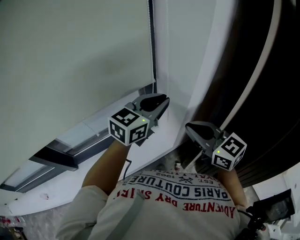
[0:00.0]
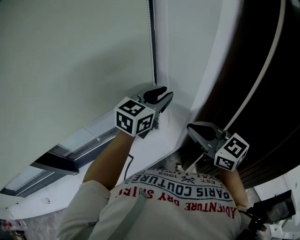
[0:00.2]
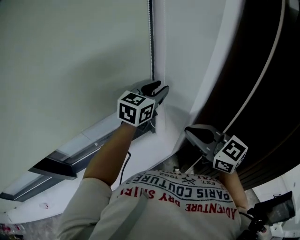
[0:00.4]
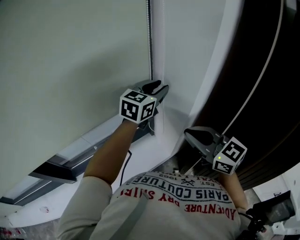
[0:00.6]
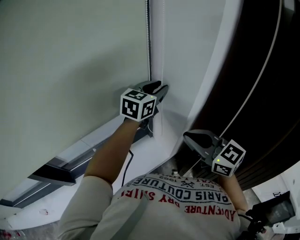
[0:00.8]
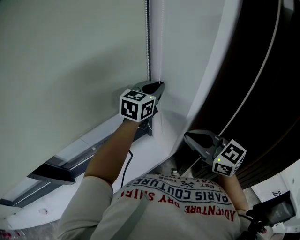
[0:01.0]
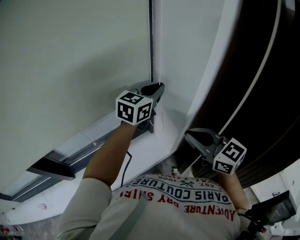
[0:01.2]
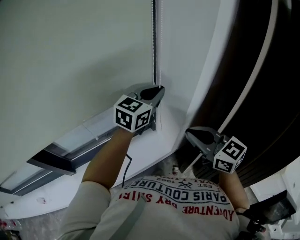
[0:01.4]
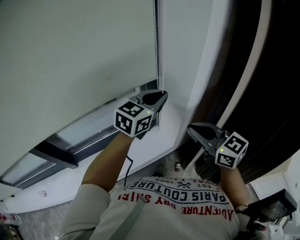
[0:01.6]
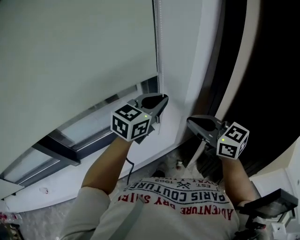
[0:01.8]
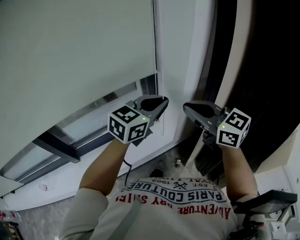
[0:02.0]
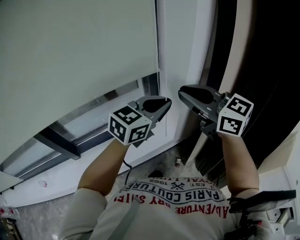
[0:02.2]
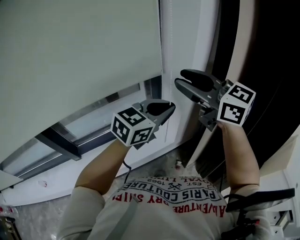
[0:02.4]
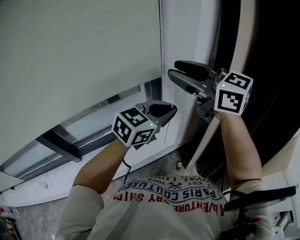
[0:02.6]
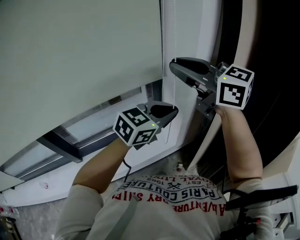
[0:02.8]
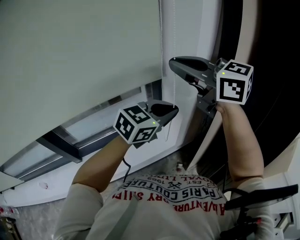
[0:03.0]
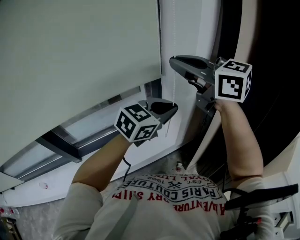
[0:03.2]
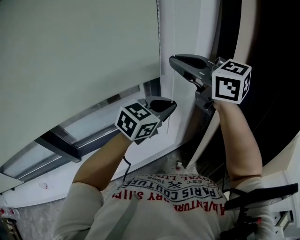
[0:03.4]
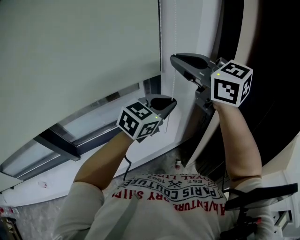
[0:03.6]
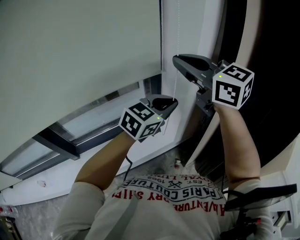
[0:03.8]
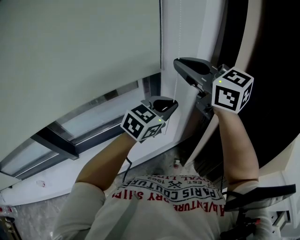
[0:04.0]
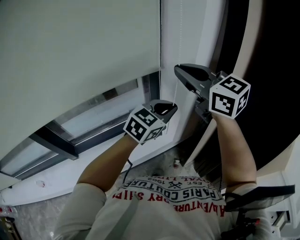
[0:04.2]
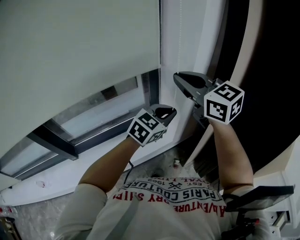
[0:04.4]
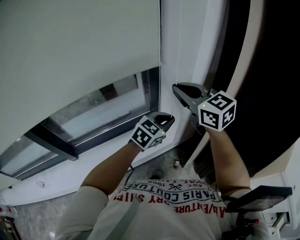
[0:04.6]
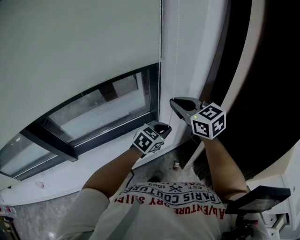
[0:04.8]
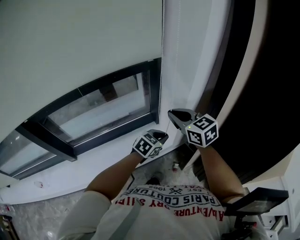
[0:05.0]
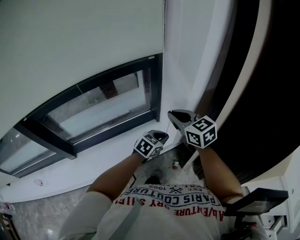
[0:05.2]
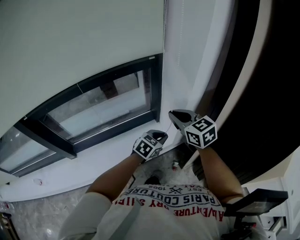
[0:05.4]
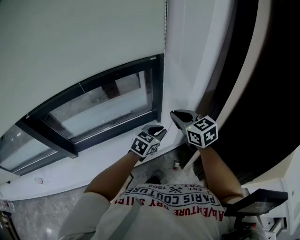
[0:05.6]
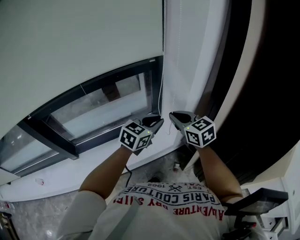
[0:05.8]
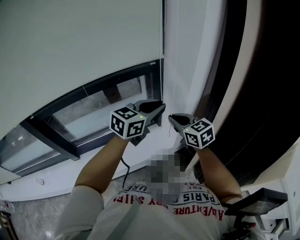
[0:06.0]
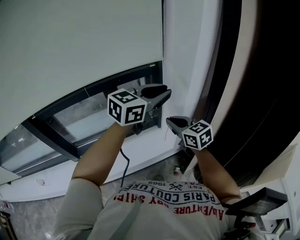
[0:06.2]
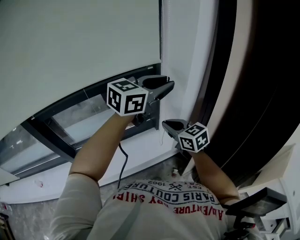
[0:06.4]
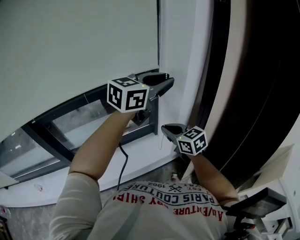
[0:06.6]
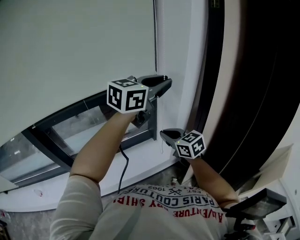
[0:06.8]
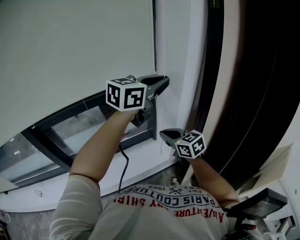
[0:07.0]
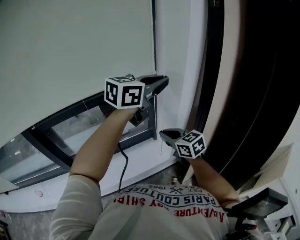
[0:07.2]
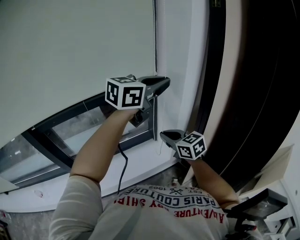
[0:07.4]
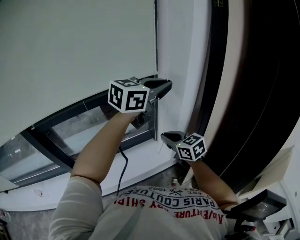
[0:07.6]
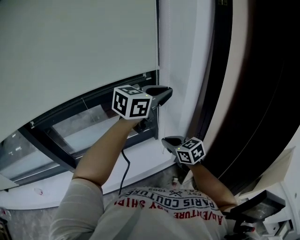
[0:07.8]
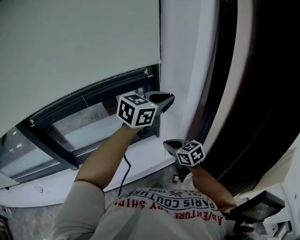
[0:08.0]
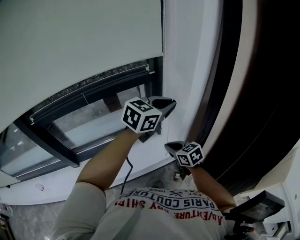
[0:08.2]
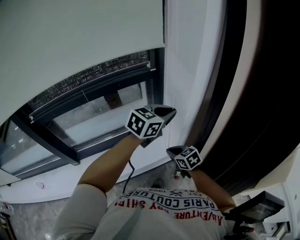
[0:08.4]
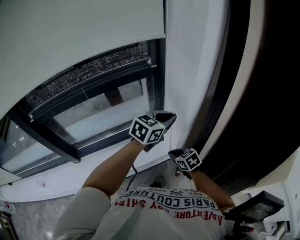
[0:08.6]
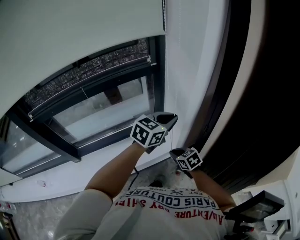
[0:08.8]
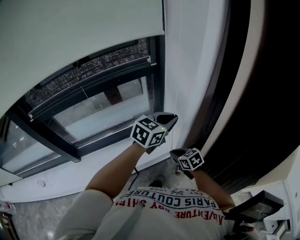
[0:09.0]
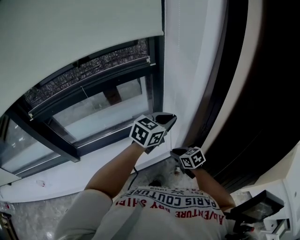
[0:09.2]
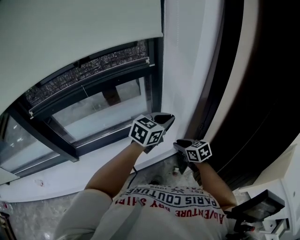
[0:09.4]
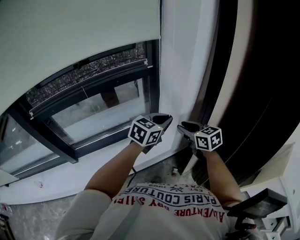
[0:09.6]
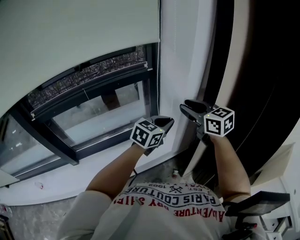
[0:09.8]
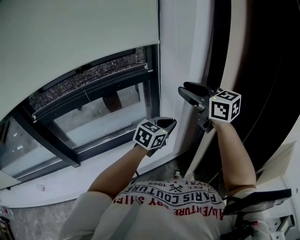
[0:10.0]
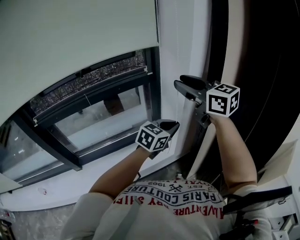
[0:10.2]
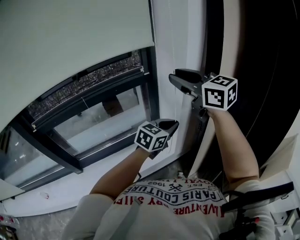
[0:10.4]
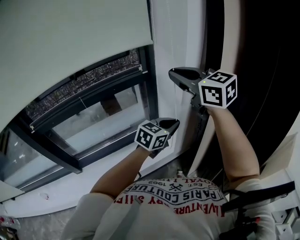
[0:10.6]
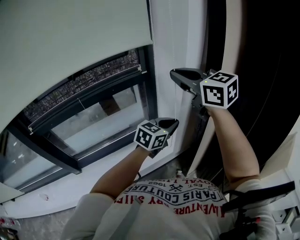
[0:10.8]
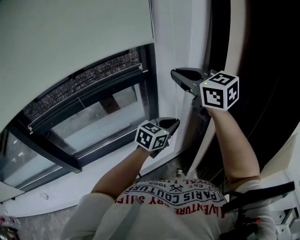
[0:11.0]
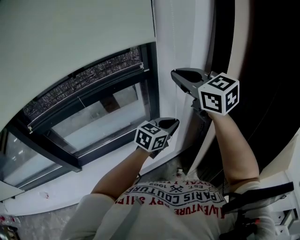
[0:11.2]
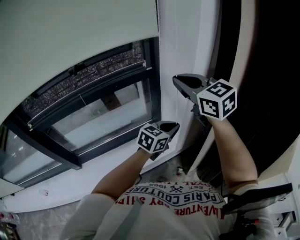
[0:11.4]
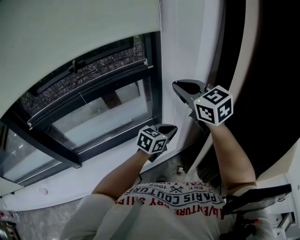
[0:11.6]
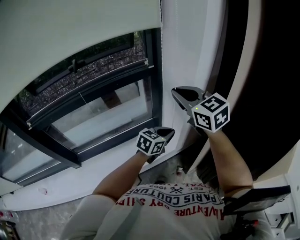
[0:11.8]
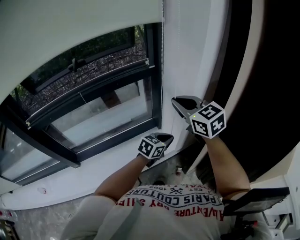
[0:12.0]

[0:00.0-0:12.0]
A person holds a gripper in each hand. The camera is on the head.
0:00.0 to 0:01.6: The left gripper travels forward and back again, roughly 15 cm each way, and opens, then closes again.
0:01.6 to 0:03.0: The right gripper shifts some 20 cm upward, and opens and closes again. The left gripper moves backward, roughly 10 cm.
0:03.0 to 0:04.4: The two grippers go roughly 10 cm downward.
0:04.4 to 0:06.0: The right gripper travels downward by roughly 20 cm. The left gripper goes some 5 cm to the left, and travels downward and back again, about 20 cm each way.
0:06.0 to 0:07.6: The left gripper shifts approximately 15 cm upward.
0:07.6 to 0:09.0: Both grippers travel together downward, approximately 20 cm. The right gripper rotates approximately 20 degrees.
0:09.0 to 0:10.4: The right gripper moves upward, roughly 50 cm, points its fingers roughly 40 degrees further upward, and opens its fingers.
0:10.4 to 0:12.0: Both grippers travel together downward, about 15 cm. The right gripper closes.

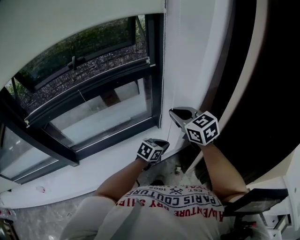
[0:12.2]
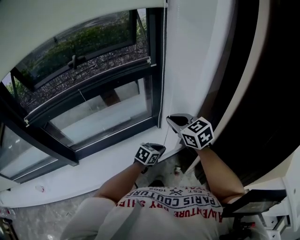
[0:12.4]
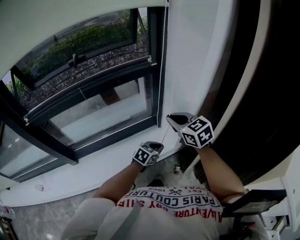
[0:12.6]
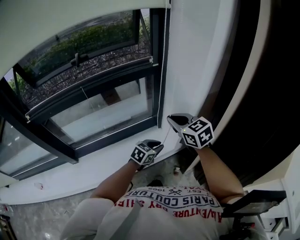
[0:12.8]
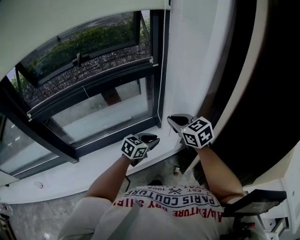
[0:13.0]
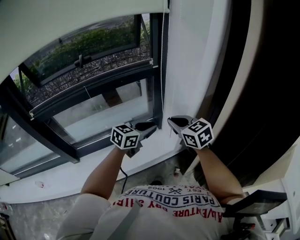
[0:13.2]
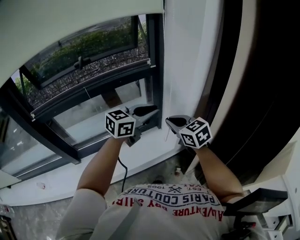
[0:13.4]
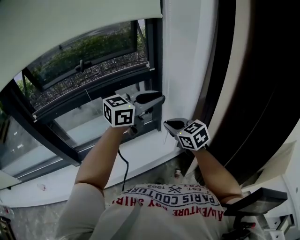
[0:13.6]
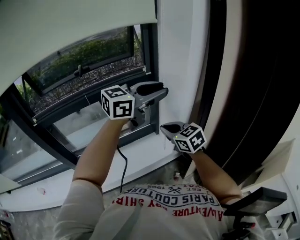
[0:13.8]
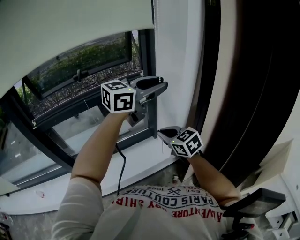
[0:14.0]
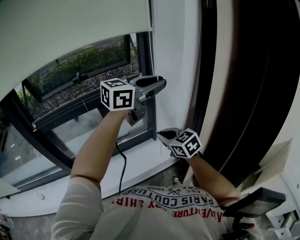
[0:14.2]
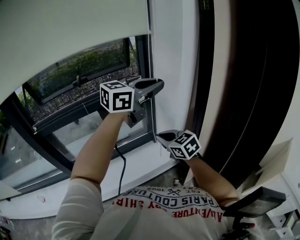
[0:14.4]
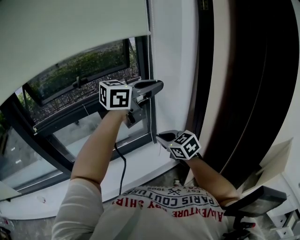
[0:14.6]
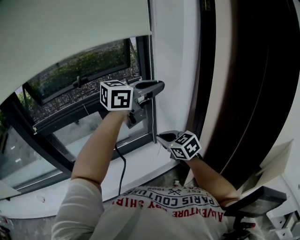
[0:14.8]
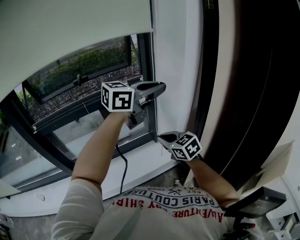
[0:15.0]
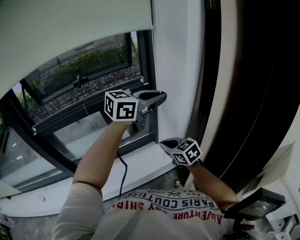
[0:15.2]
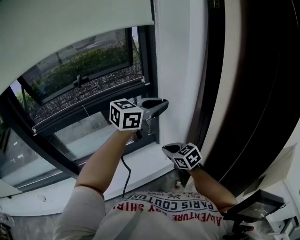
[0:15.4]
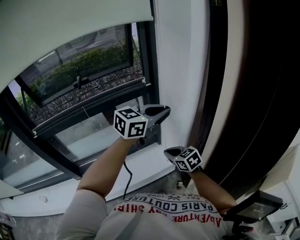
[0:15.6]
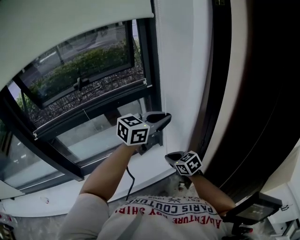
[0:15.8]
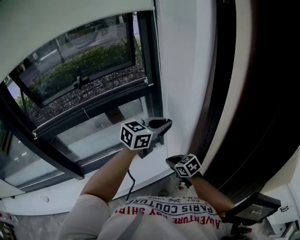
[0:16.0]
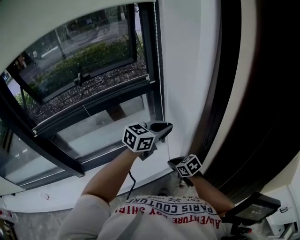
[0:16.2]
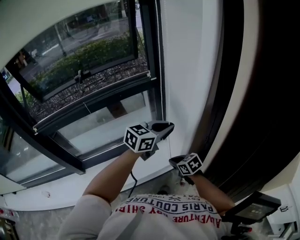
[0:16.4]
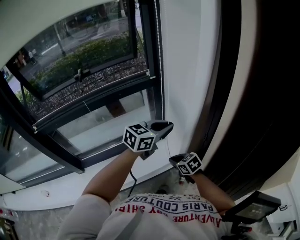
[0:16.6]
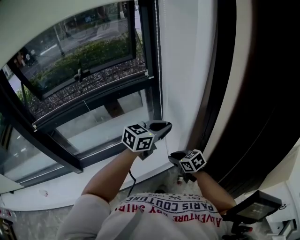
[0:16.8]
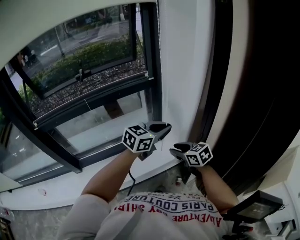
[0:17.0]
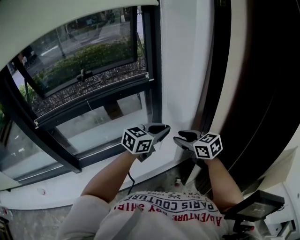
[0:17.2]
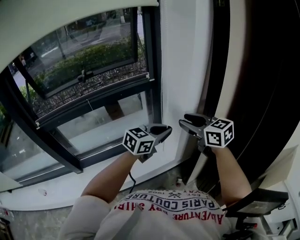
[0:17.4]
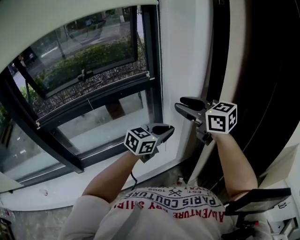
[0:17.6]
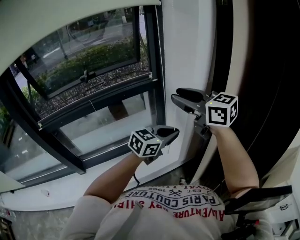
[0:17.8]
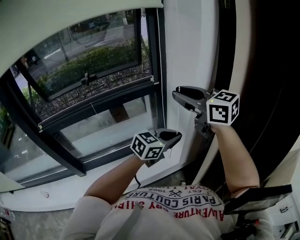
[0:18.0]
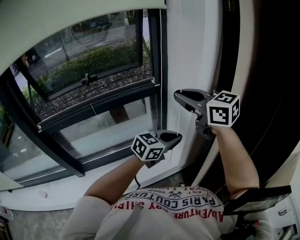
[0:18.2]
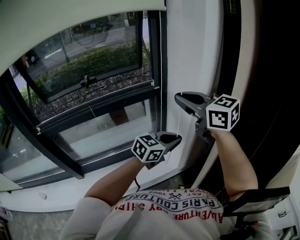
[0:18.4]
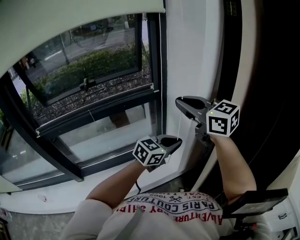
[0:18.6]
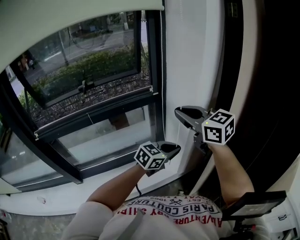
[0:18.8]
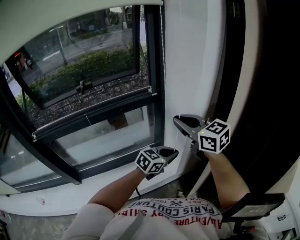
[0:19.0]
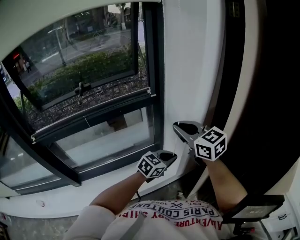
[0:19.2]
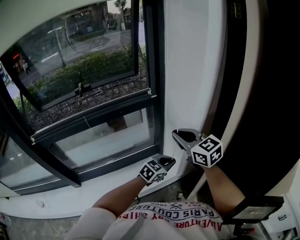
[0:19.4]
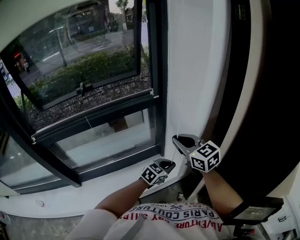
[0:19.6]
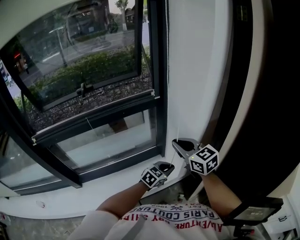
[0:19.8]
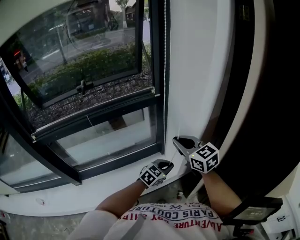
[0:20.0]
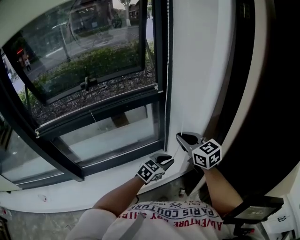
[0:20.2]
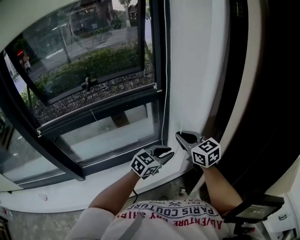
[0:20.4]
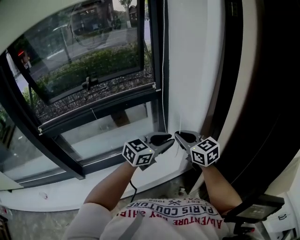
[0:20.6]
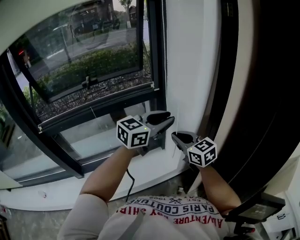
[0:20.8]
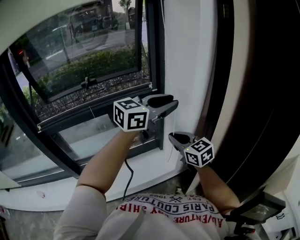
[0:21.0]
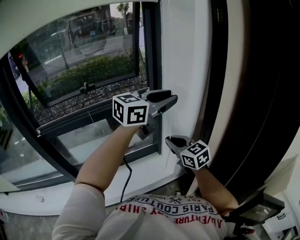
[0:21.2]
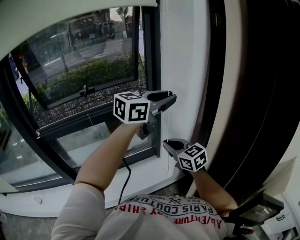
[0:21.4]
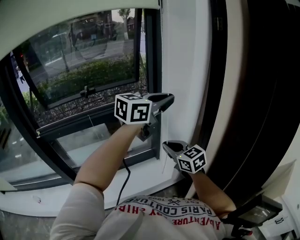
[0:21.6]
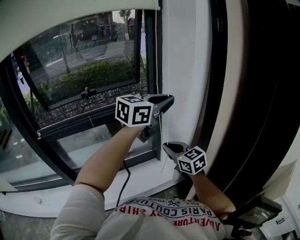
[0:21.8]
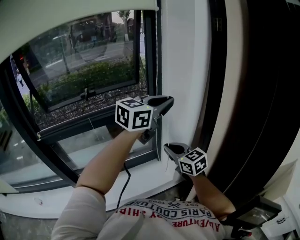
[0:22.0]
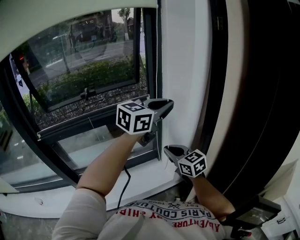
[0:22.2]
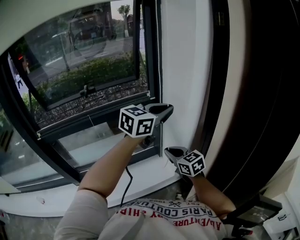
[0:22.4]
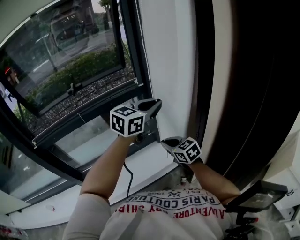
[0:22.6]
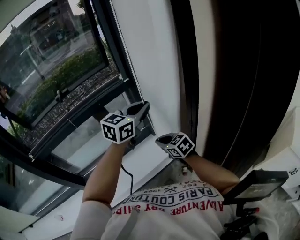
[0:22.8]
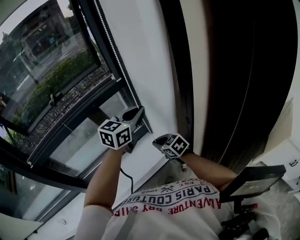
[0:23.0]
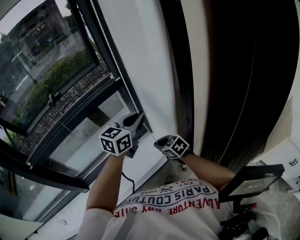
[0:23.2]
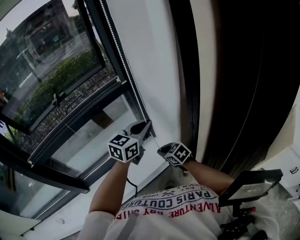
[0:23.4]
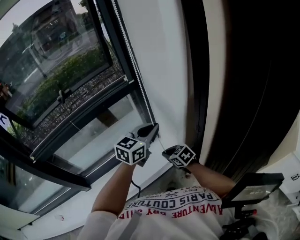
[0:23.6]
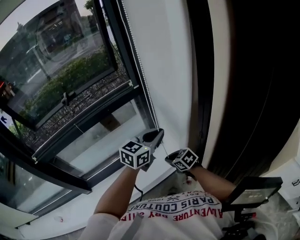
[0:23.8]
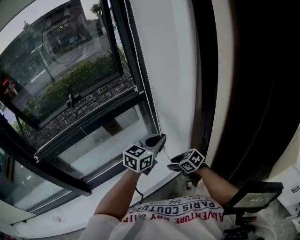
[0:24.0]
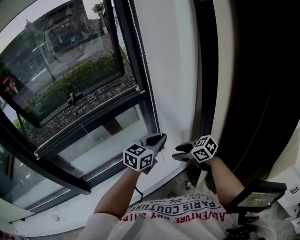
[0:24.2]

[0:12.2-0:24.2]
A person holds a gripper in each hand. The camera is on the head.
0:12.2 to 0:13.8: The left gripper travels upward by some 40 cm, angles its fingers upward, by approximately 40 degrees, and opens. Meanwhile the right gripper shifts approximately 5 cm backward.
0:13.8 to 0:15.2: The left gripper closes its fingers.
0:15.2 to 0:16.6: Both grippers travel together downward, some 15 cm.
0:16.6 to 0:18.2: The right gripper travels upward by roughly 40 cm, tilts its fingers roughly 40 degrees upward, and opens, then closes once more.
0:18.2 to 0:19.8: Both grippers travel together downward, approximately 20 cm.
0:19.8 to 0:21.2: The left gripper is displaced upward by about 40 cm, points its fingers roughly 30 degrees further upward, and opens up.
0:21.2 to 0:22.6: The two grippers go about 10 cm downward. The left gripper closes.
0:22.6 to 0:24.2: The left gripper is displaced downward by roughly 10 cm. Meanwhile the right gripper goes downward and returns, some 10 cm each way, and opens.
